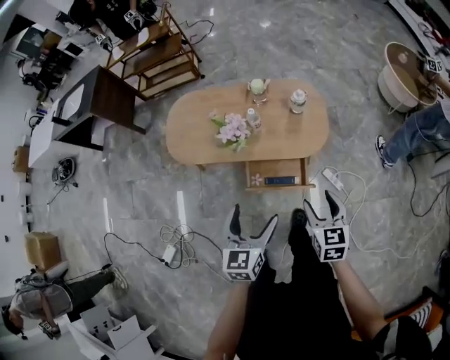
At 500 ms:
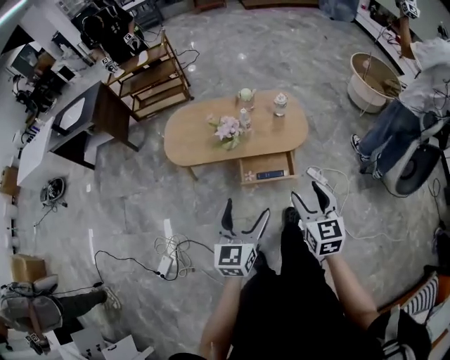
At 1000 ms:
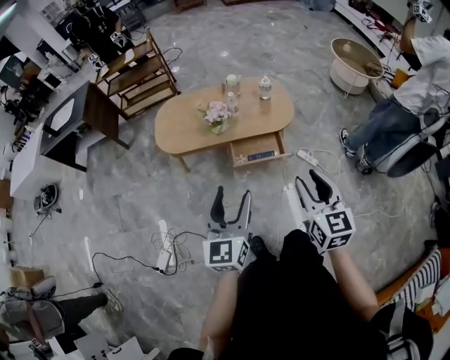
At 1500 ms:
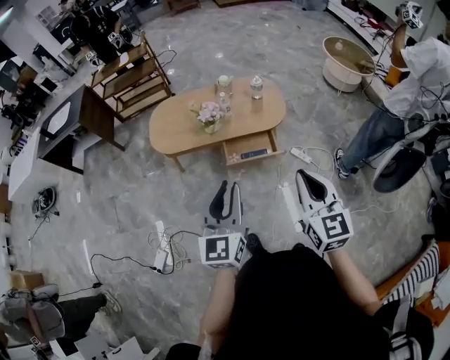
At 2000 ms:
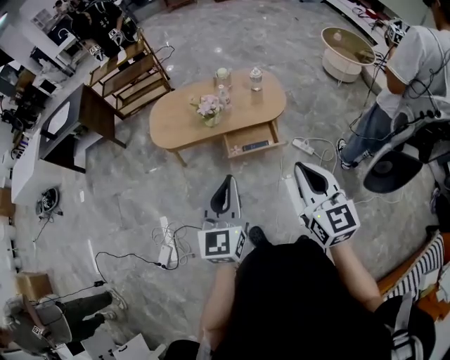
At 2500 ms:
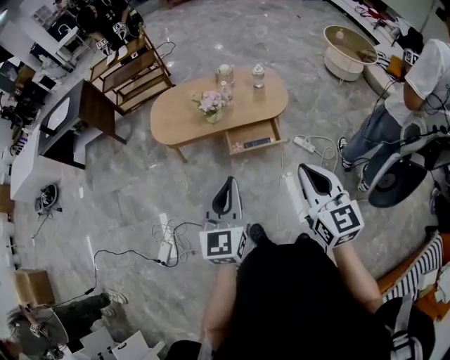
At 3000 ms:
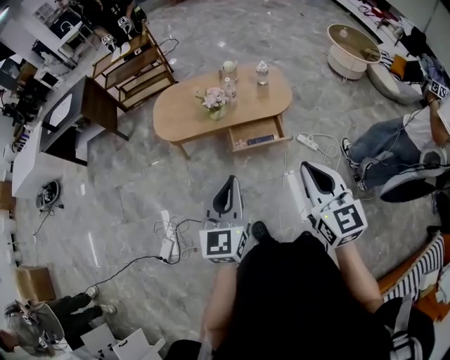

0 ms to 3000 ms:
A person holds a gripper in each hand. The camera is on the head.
0 ms to 1500 ms: Both grippers move backward and upward, approximately 35 cm. The left gripper swivels some 20 degrees, and closes; the right gripper swivels about 20 degrees, and closes.
1500 ms to 3000 ms: The grippers make only small movements.

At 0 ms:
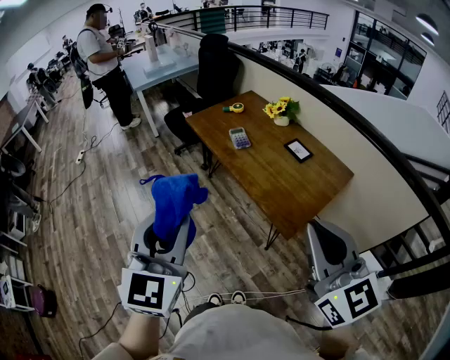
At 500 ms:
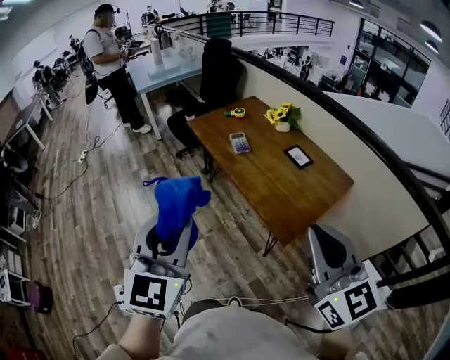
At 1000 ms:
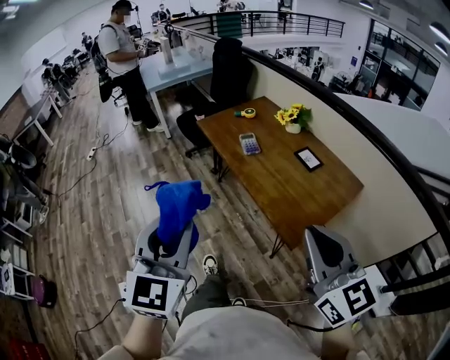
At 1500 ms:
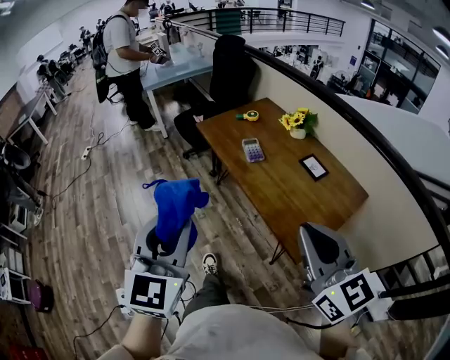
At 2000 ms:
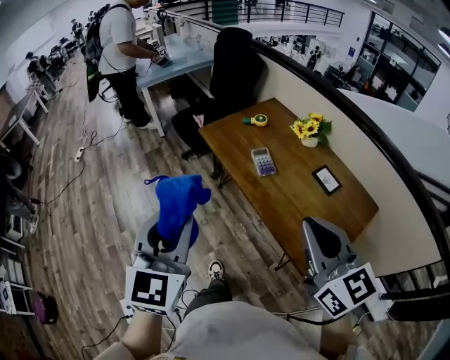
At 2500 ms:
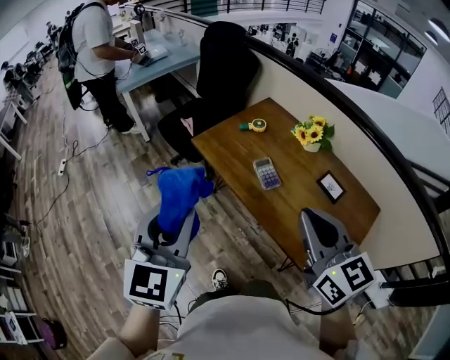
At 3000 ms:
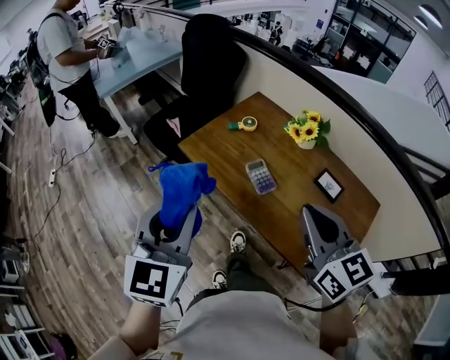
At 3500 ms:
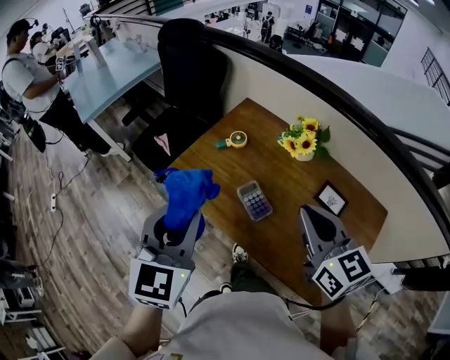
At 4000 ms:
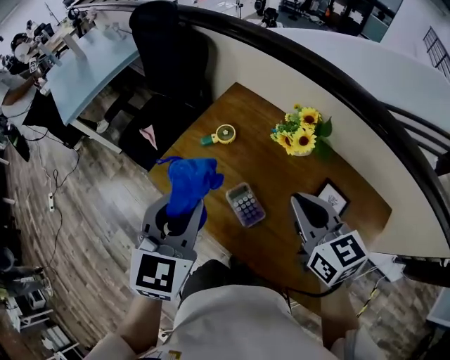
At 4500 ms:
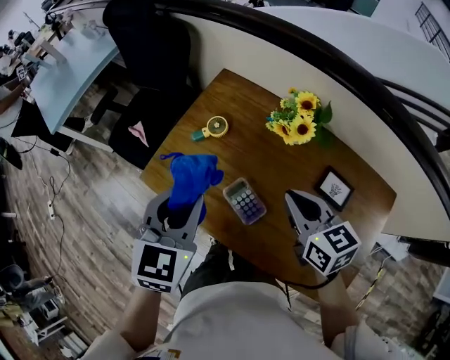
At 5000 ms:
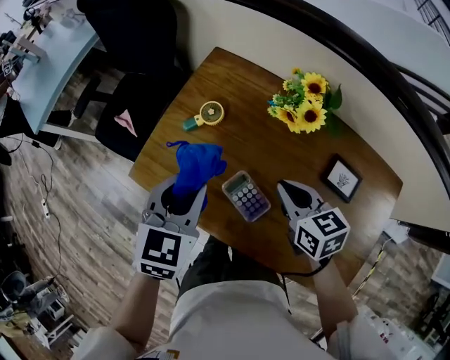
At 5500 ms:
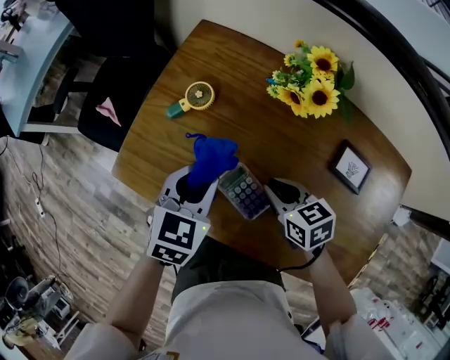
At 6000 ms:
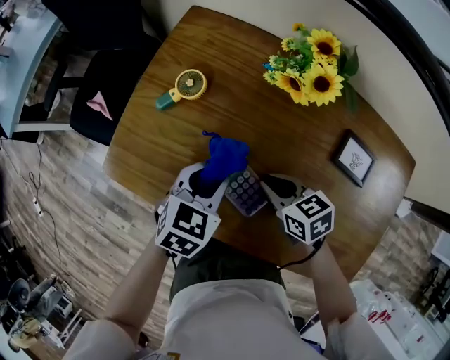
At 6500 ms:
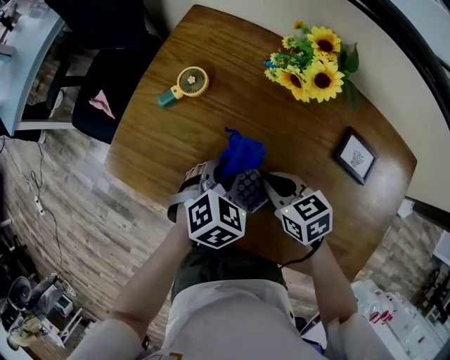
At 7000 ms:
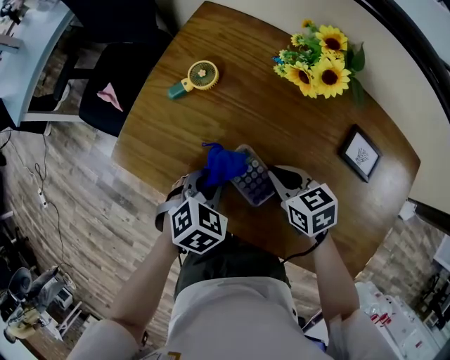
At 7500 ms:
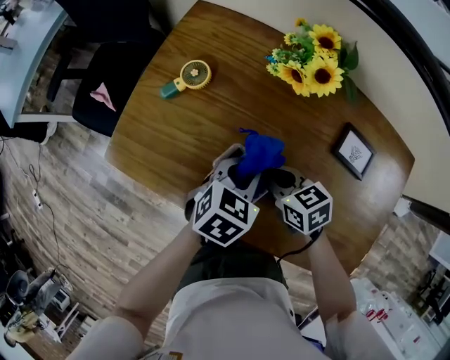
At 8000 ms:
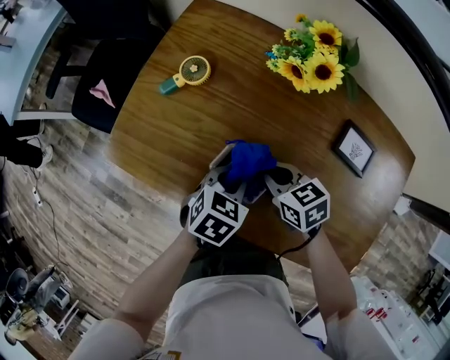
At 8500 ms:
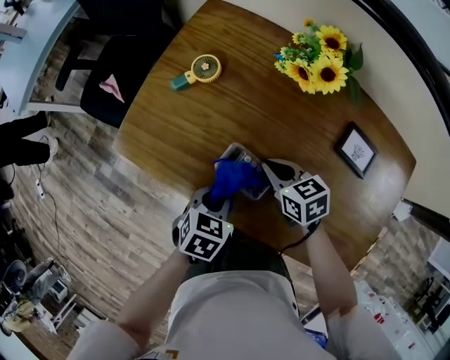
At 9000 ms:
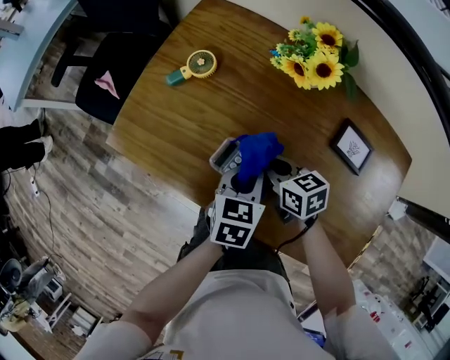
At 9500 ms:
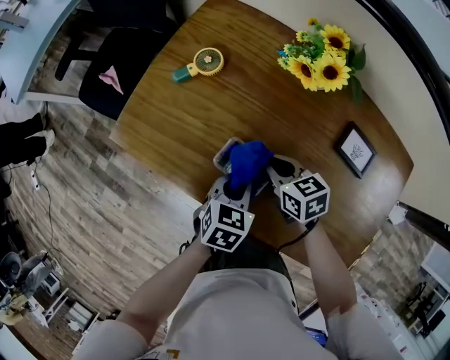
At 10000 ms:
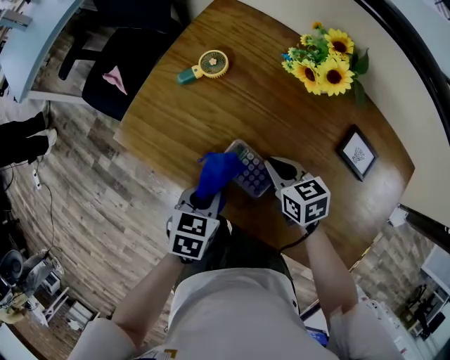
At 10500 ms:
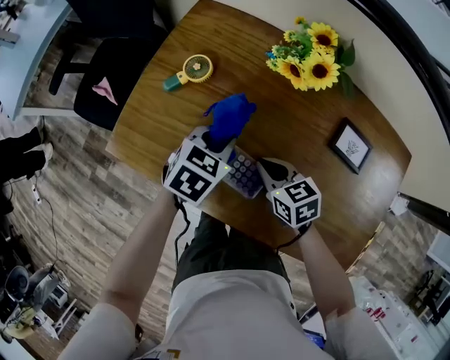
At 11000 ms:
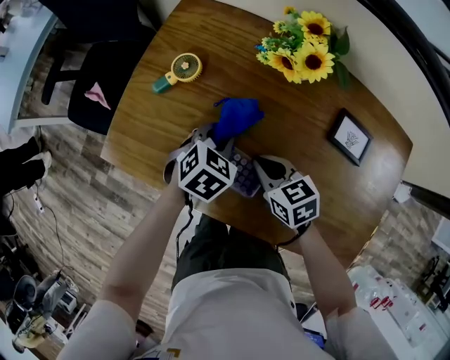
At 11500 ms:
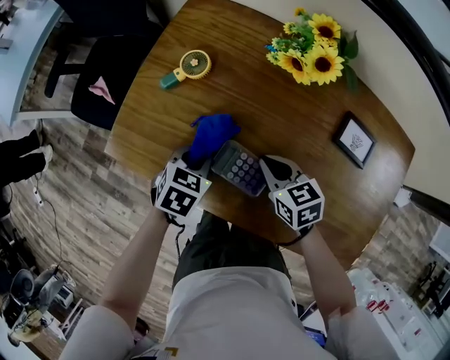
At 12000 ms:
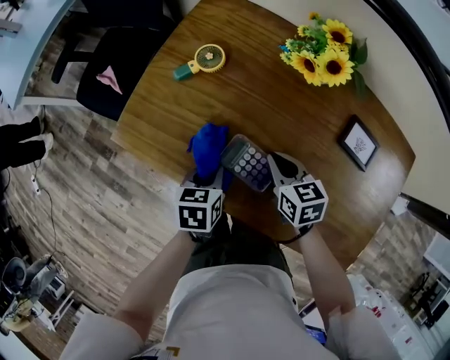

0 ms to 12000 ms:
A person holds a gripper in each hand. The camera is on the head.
0 ms to 2000 ms: Both grippers move forward, roughly 25 cm.
2000 ms to 4000 ms: The two grippers travel together, forward, some 40 cm. The right gripper changes its angle by some 20 degrees. Meanwhile the left gripper rotates some 30 degrees.
4000 ms to 6000 ms: The two grippers go approximately 30 cm downward. The right gripper swivels about 30 degrees. The left gripper turns by roughly 40 degrees.
6000 ms to 8000 ms: The left gripper moves backward, roughly 5 cm.
8000 ms to 10000 ms: The left gripper moves left and right over roughly 10 cm, changing direction 2 times, and rotates approximately 20 degrees.
10000 ms to 12000 ms: The left gripper reaches some 15 cm forward, then returns.

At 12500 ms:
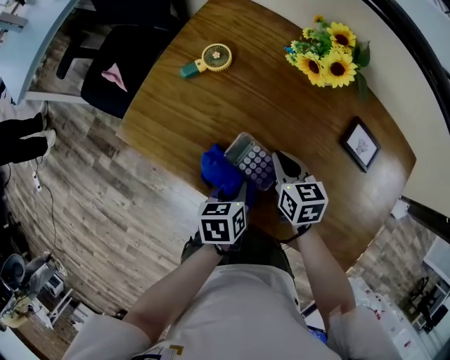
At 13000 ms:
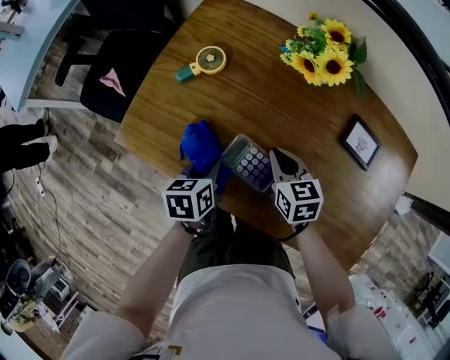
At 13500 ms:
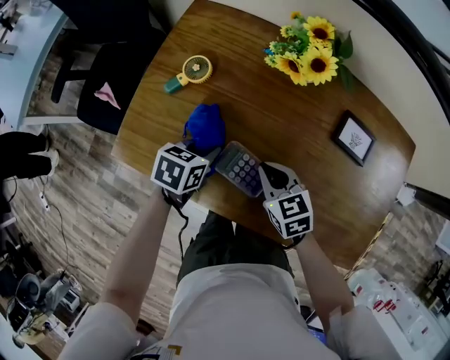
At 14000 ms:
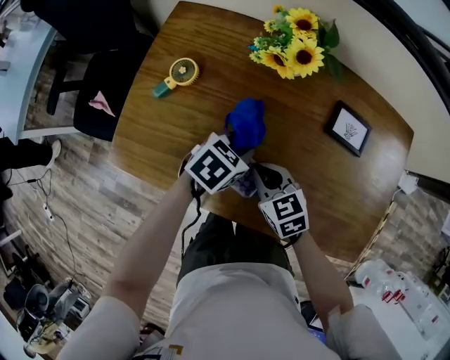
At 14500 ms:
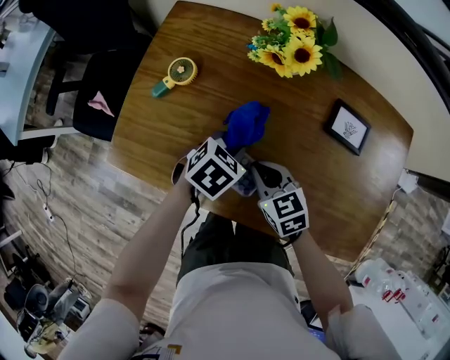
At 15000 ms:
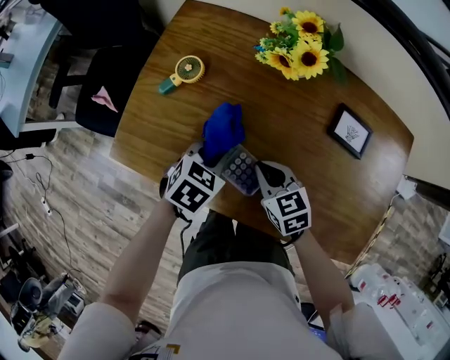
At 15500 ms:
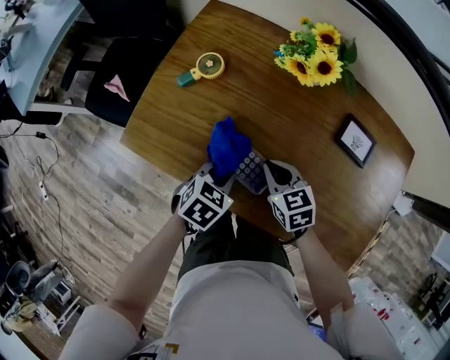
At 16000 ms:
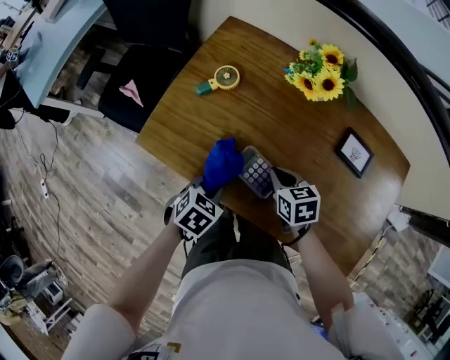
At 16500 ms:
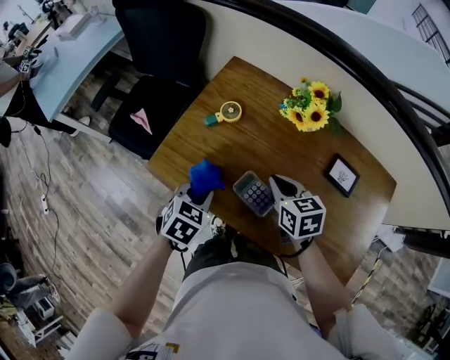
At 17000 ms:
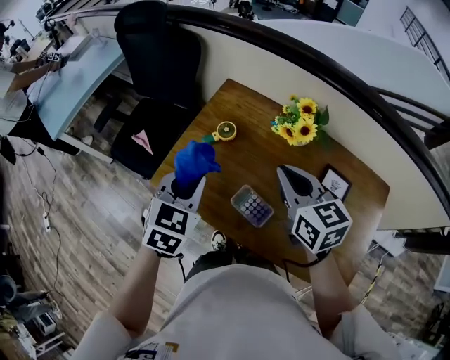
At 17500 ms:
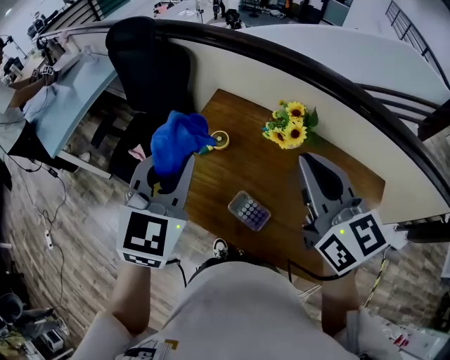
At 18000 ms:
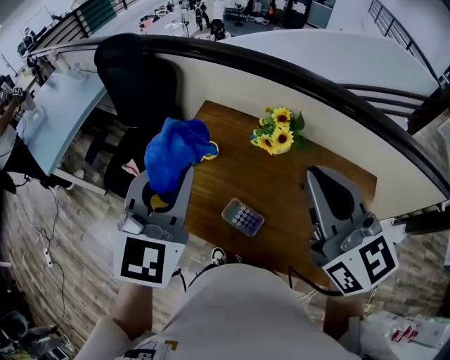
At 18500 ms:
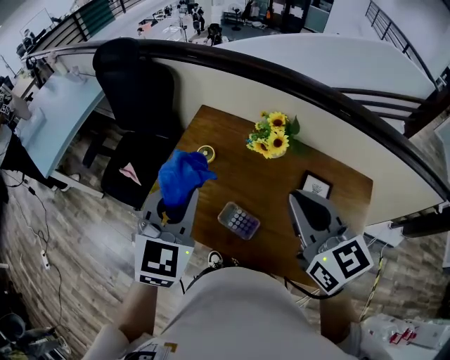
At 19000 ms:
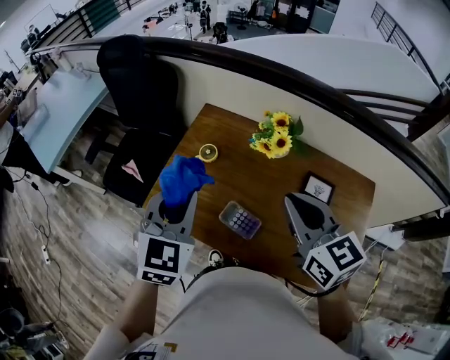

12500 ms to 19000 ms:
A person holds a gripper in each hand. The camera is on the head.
12500 ms to 14500 ms: The left gripper travels forward by approximately 10 cm, goes to the left and returns, approximately 10 cm each way, and rotates around the line of its fingers by about 60 degrees, clockwise from behind.
14500 ms to 17000 ms: The left gripper moves upward and to the left, approximately 30 cm, and changes its angle by some 40 degrees; the right gripper moves upward, about 30 cm, and swivels approximately 20 degrees.
17000 ms to 19000 ms: The left gripper travels upward by about 10 cm. The right gripper is displaced upward and backward by some 10 cm.

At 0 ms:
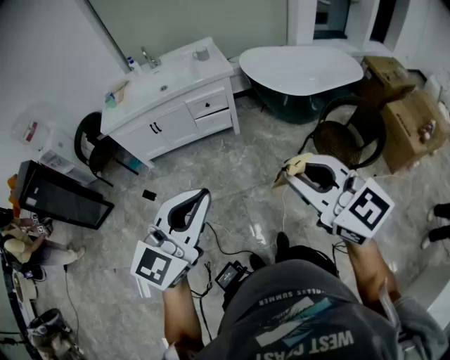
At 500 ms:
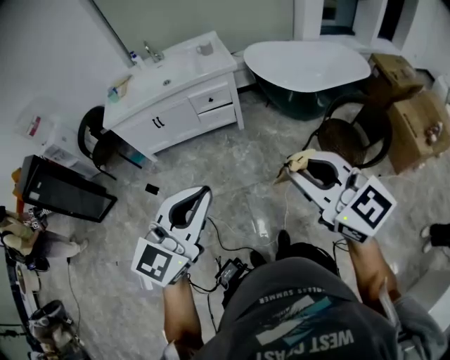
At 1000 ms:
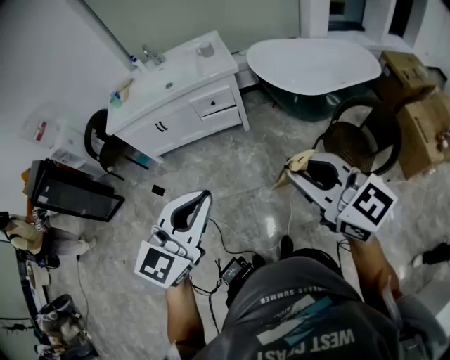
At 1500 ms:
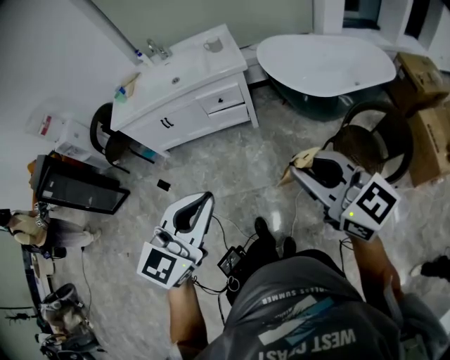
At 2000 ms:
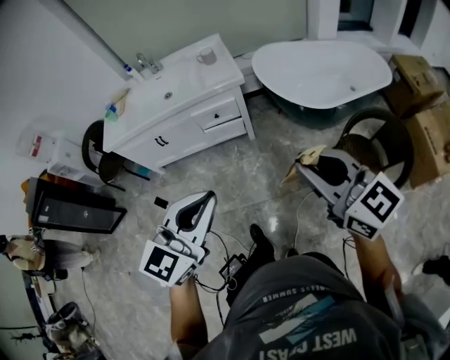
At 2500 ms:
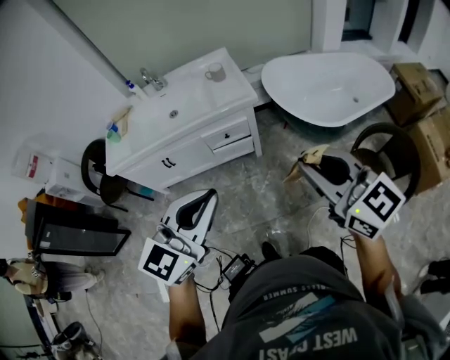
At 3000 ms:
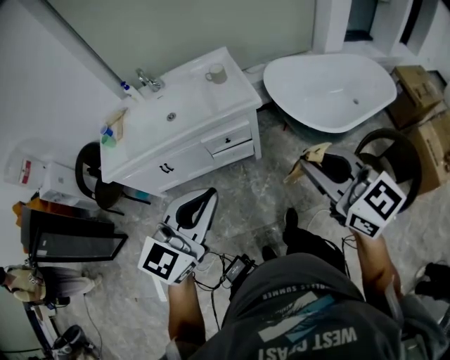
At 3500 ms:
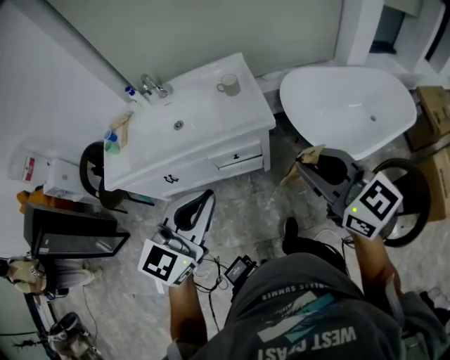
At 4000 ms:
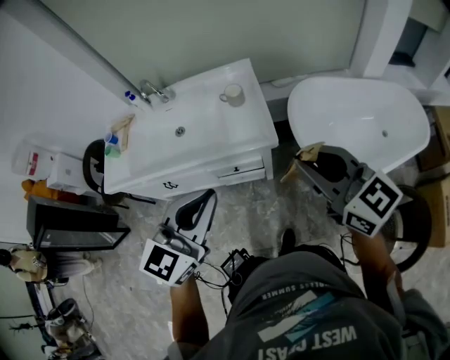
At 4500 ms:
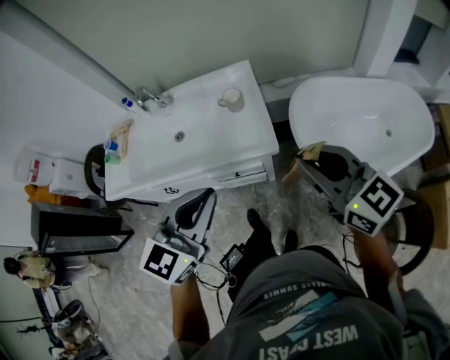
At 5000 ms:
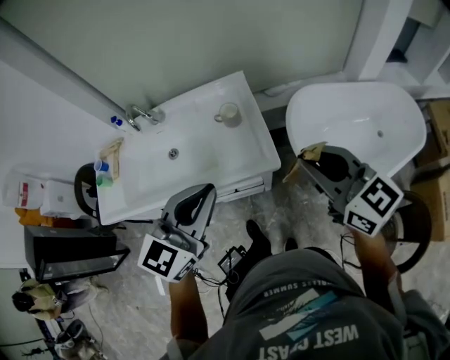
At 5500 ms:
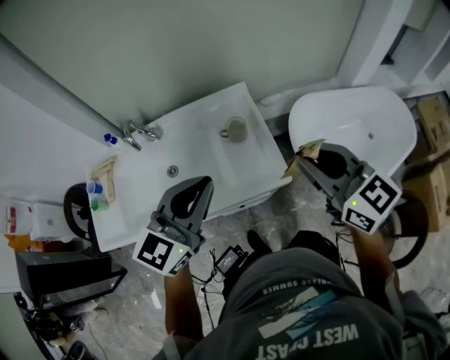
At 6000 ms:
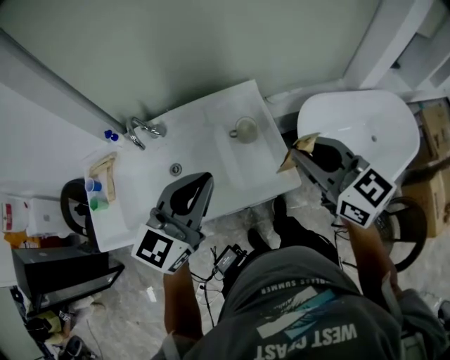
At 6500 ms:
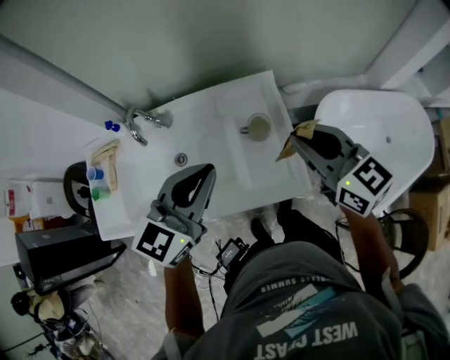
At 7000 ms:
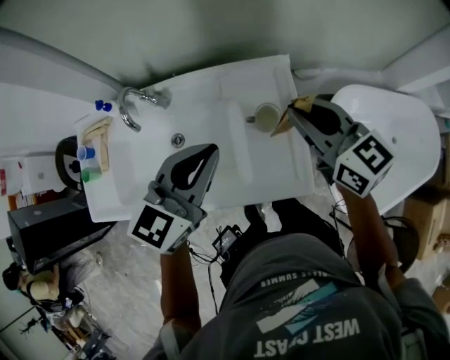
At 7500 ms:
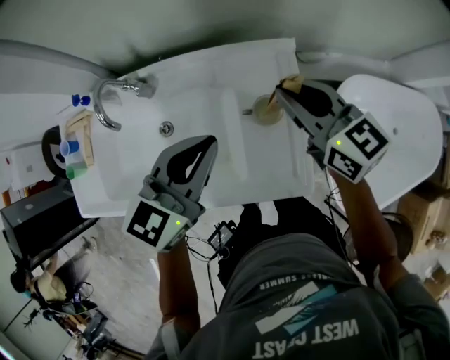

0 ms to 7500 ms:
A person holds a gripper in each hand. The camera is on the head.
0 ms to 2000 ms: The right gripper heads forward and to the right, covering some 25 cm. The left gripper travels forward by some 25 cm.
2000 ms to 4000 ms: The pair of grippers is taken forward, roughly 40 cm.
4000 ms to 5500 ms: The two grippers go approximately 20 cm forward.
5500 ms to 7500 ms: The grippers both shift forward and downward by approximately 25 cm. The left gripper changes its angle by about 20 degrees.